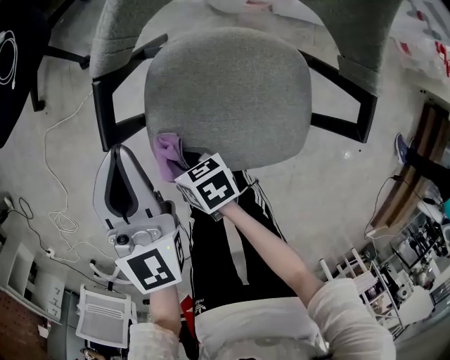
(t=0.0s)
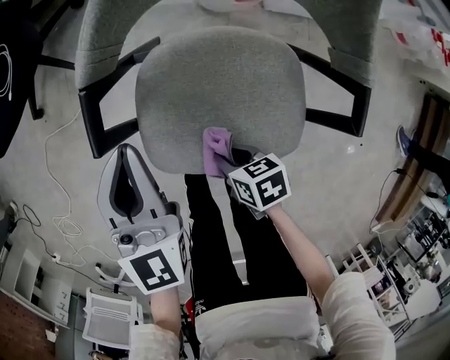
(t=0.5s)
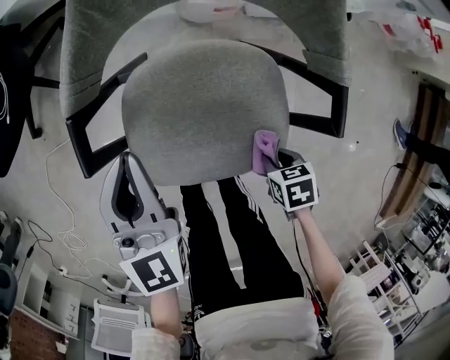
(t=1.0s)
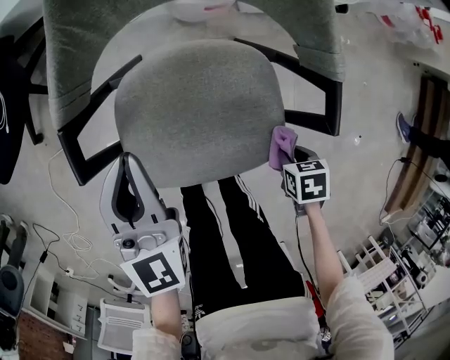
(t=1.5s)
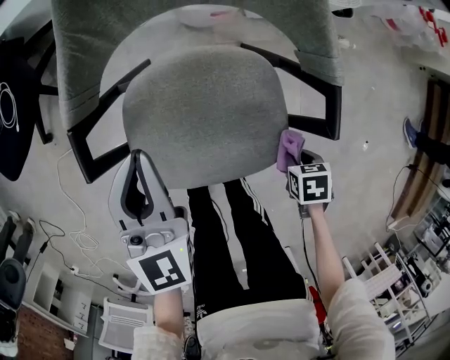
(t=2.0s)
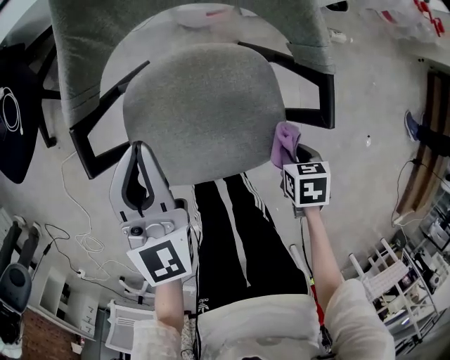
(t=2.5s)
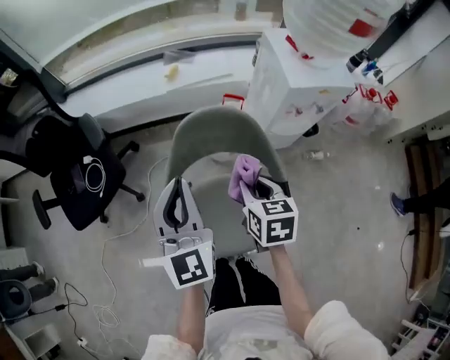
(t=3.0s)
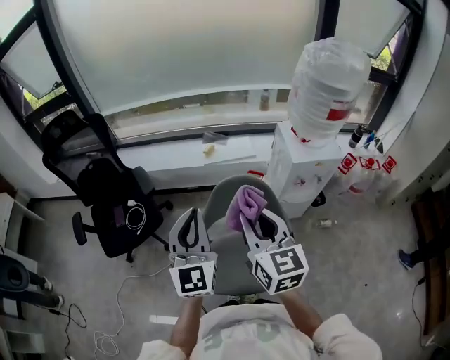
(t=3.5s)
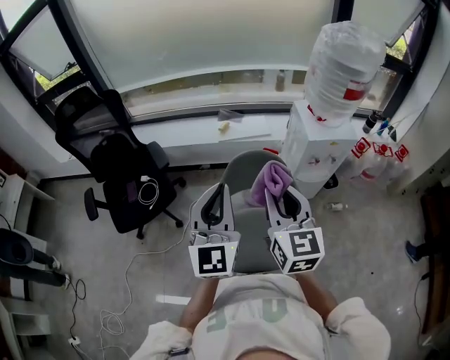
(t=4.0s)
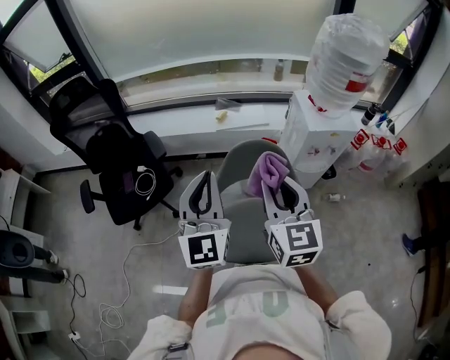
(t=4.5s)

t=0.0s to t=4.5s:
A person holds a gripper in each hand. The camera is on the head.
t=0.0s to t=2.0s: The right gripper shifts by about 40 cm, and angles its fingers downward, by roughly 40 degrees. The left gripper changes place by about 10 cm.
t=2.0s to t=4.5s: Both grippers travel together upward, roughly 50 cm. The right gripper angles its fingers upward, by some 80 degrees, while the left gripper points its fingers about 30 degrees further upward.

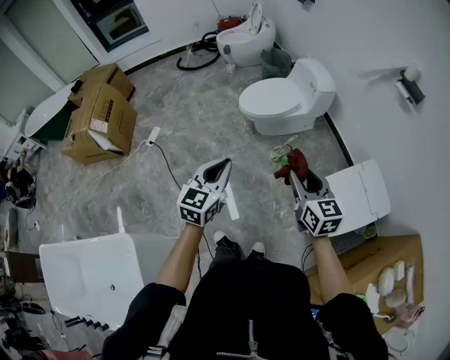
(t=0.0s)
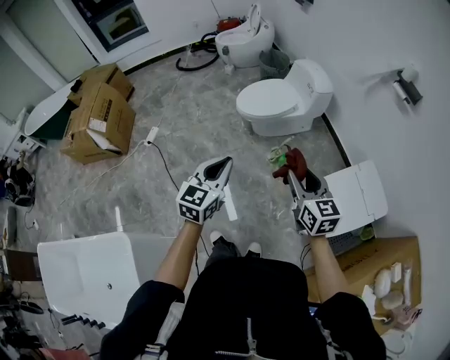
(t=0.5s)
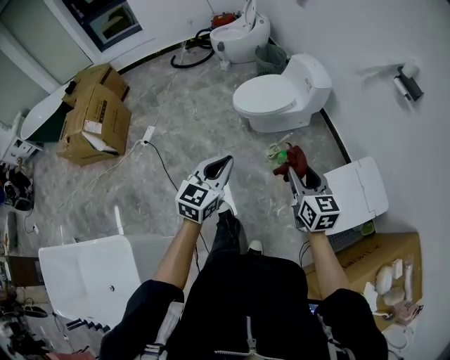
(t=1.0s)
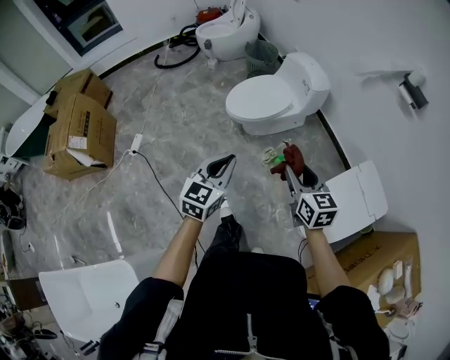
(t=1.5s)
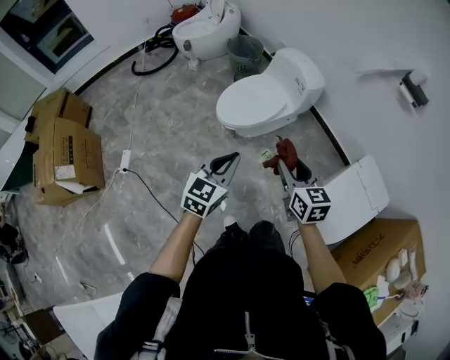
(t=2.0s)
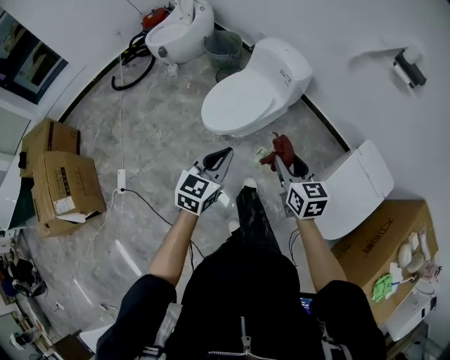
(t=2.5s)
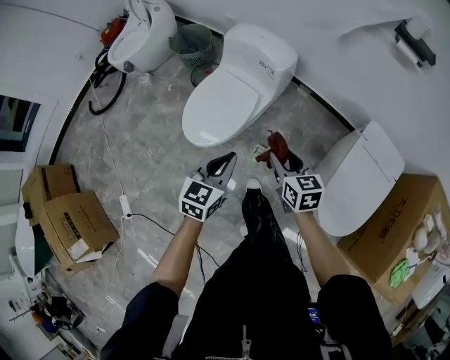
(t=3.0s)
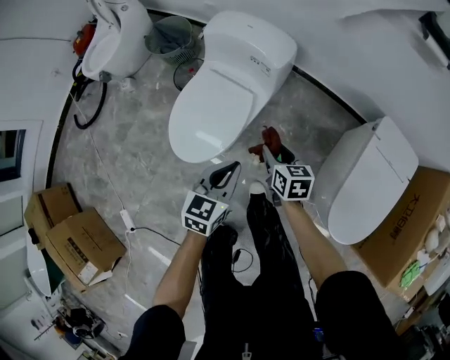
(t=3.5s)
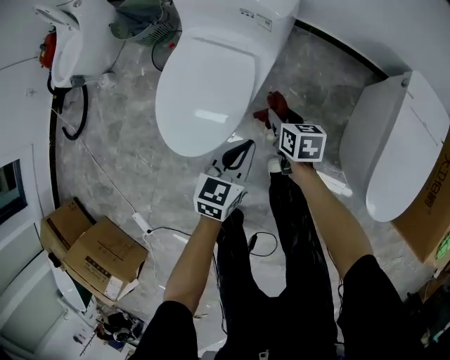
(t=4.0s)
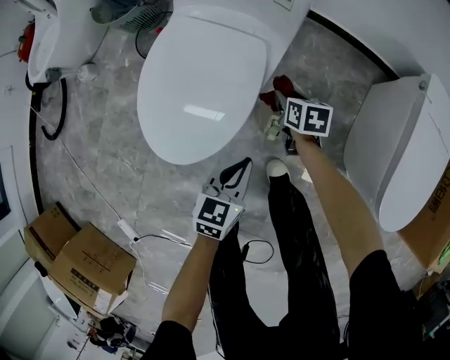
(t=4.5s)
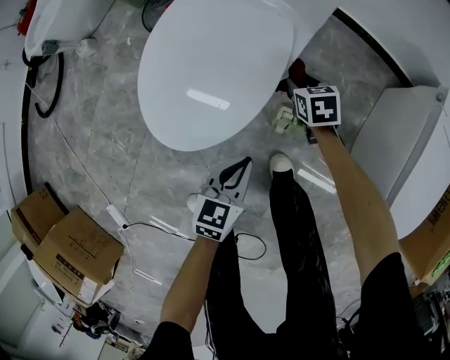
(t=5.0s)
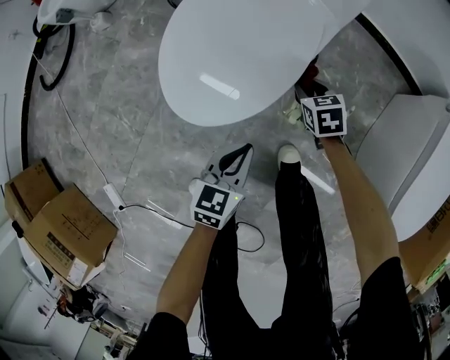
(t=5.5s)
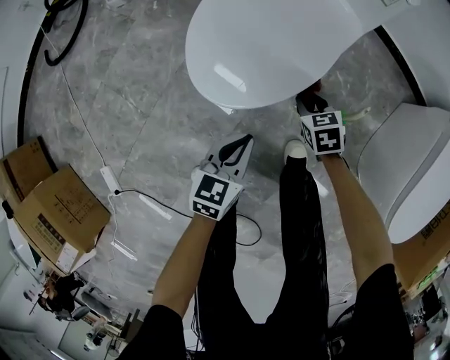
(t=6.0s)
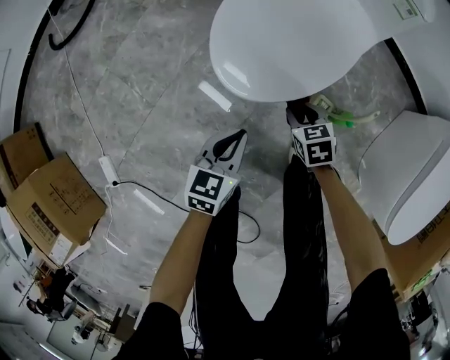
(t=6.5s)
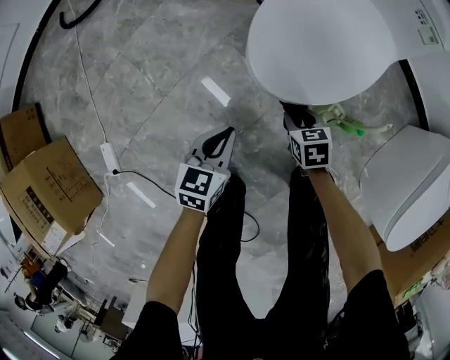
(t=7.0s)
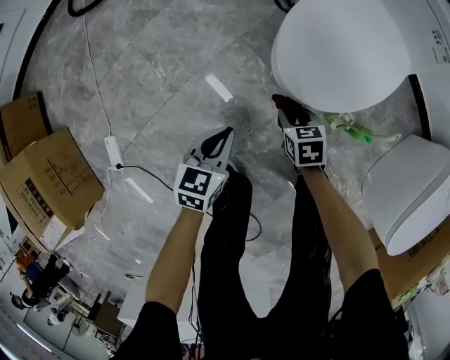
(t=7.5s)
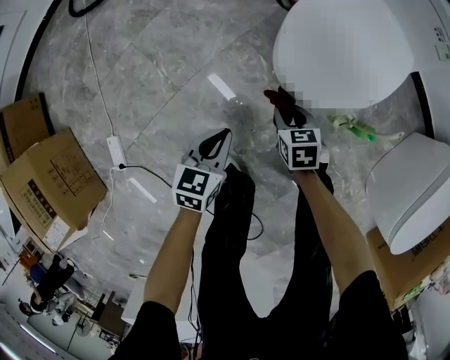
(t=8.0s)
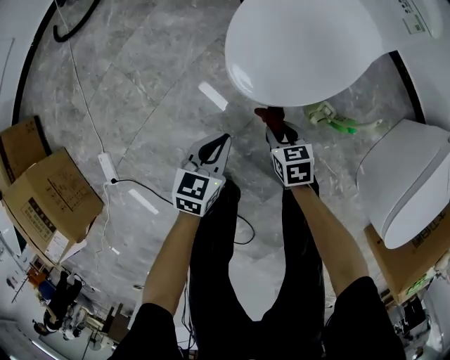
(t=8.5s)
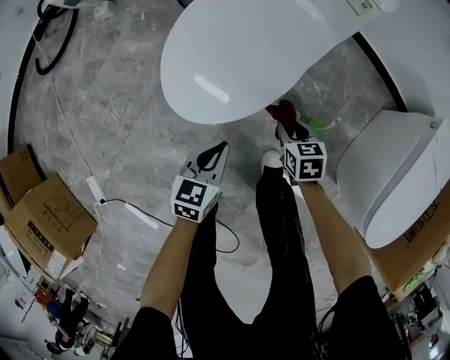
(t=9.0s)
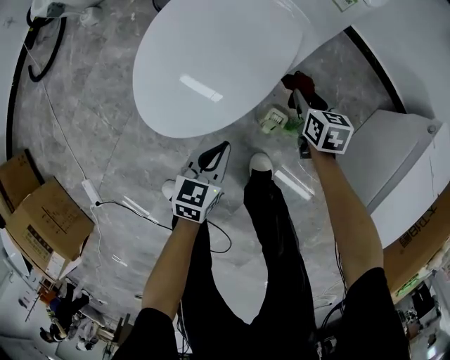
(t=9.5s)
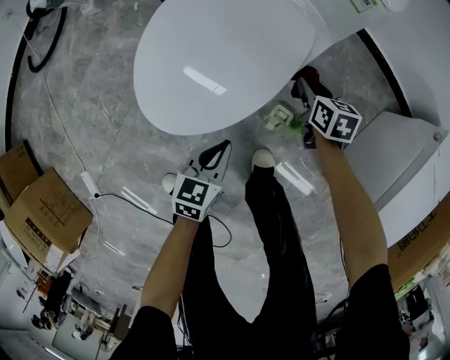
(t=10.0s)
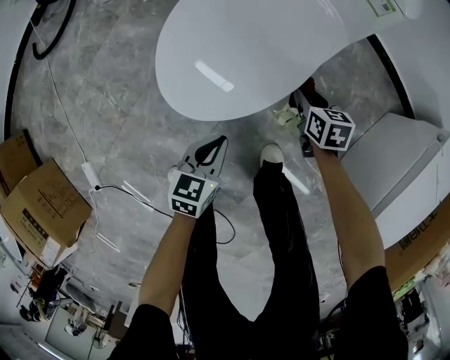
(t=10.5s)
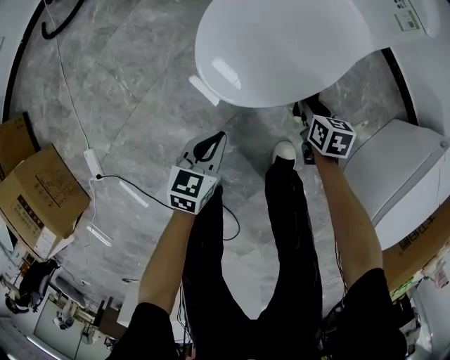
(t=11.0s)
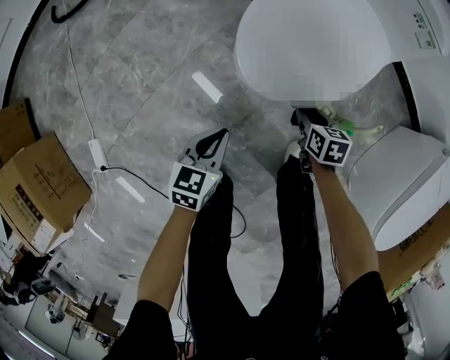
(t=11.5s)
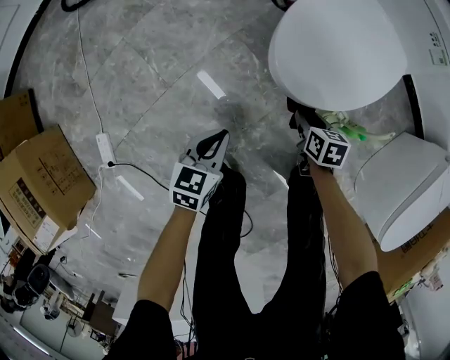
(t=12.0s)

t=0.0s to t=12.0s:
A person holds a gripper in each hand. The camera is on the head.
t=0.0s to t=2.0s: The left gripper goes roughly 25 cm forward, and turns by some 20 degrees. Meanwhile the right gripper shifts about 25 cm forward and to the left.
t=2.0s to t=4.0s: The grippers both shift downward by approximately 40 cm. The left gripper changes its angle by some 30 degrees, while the right gripper changes its angle by some 50 degrees.
t=4.0s to t=6.0s: Both grippers travel together downward, to the left and backward, some 25 cm. The right gripper changes its angle by some 40 degrees.
t=6.0s to t=8.0s: The two grippers go some 25 cm to the left.
t=8.0s to t=10.0s: The left gripper goes about 30 cm to the right; the right gripper shifts approximately 40 cm to the right and forward, and rotates roughly 30 degrees.
t=10.0s to t=12.0s: The left gripper shifts roughly 30 cm to the left, while the right gripper shifts approximately 35 cm to the left and backward.

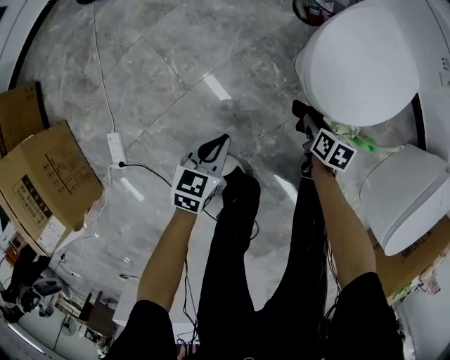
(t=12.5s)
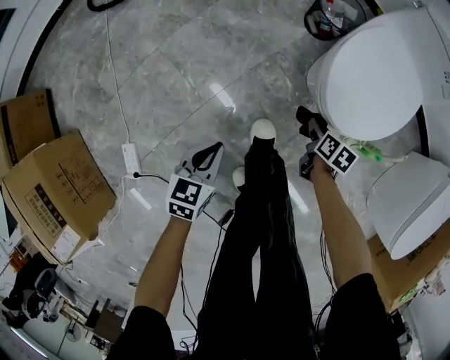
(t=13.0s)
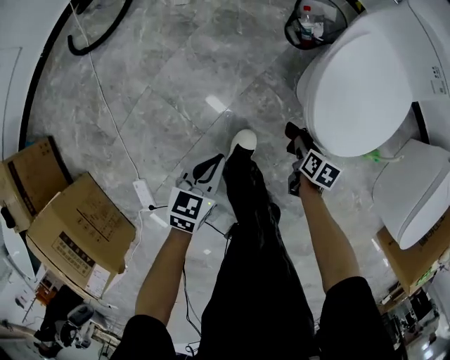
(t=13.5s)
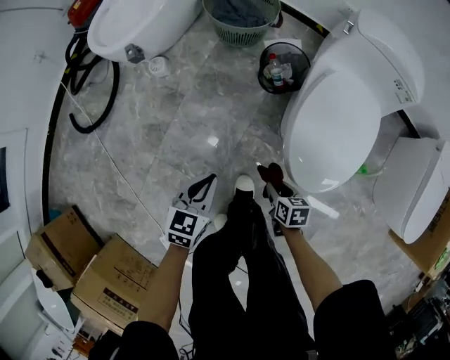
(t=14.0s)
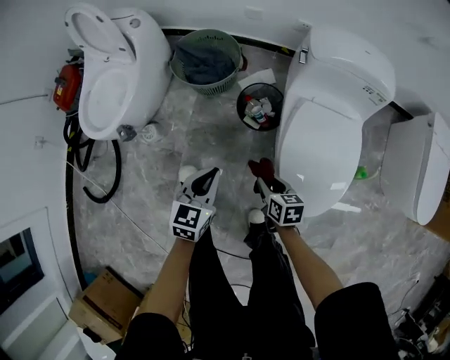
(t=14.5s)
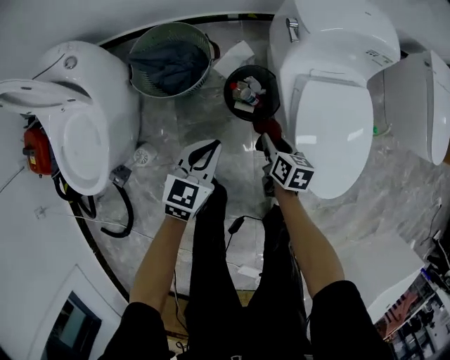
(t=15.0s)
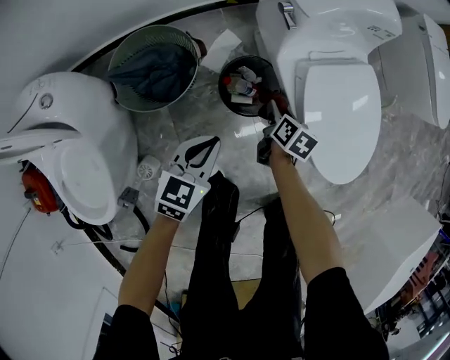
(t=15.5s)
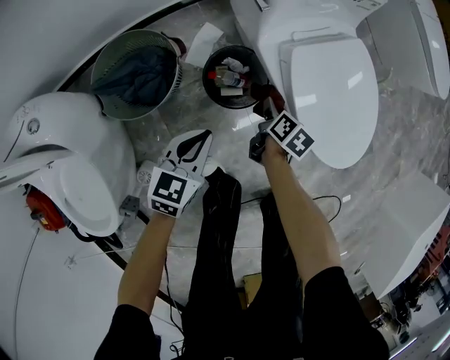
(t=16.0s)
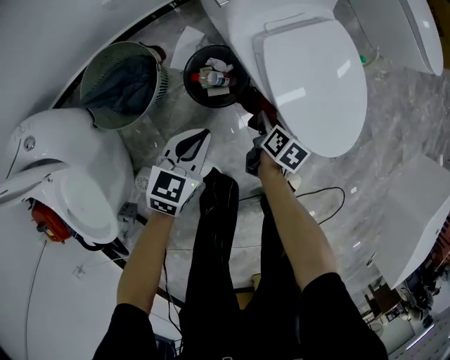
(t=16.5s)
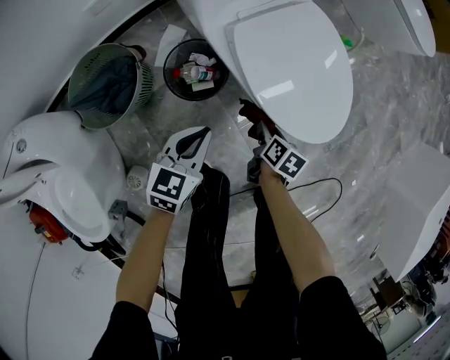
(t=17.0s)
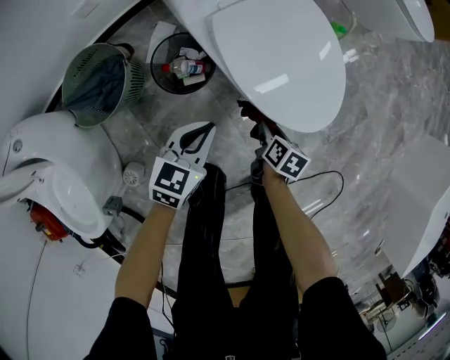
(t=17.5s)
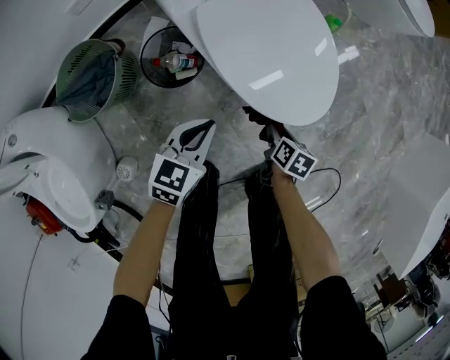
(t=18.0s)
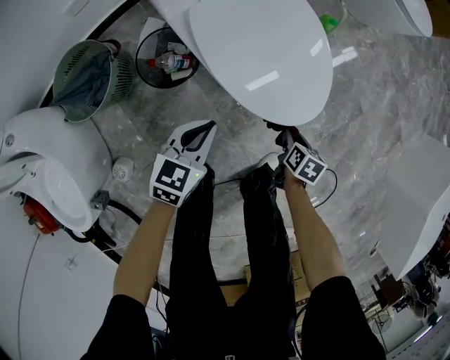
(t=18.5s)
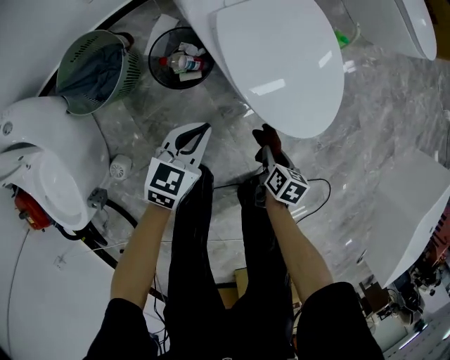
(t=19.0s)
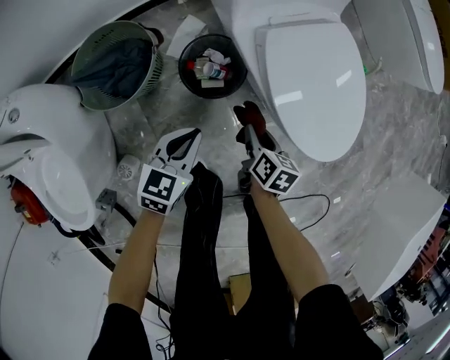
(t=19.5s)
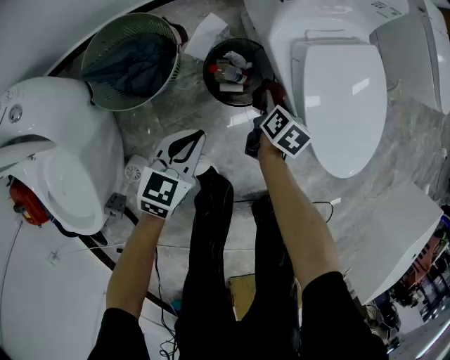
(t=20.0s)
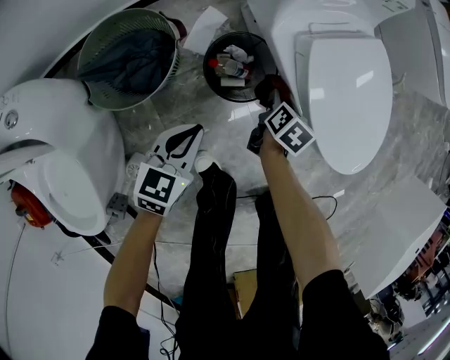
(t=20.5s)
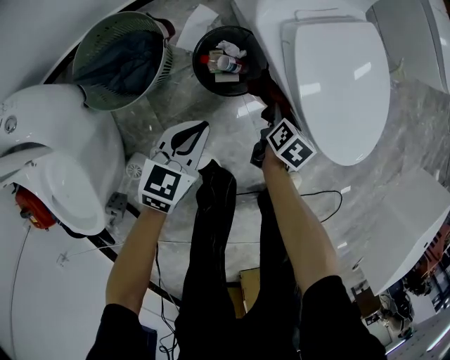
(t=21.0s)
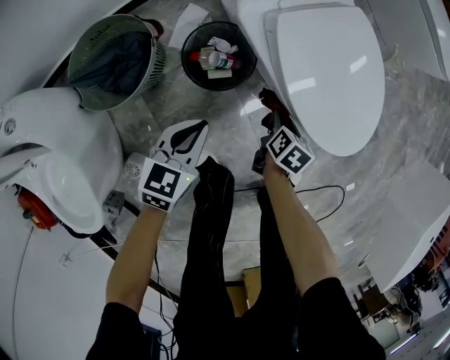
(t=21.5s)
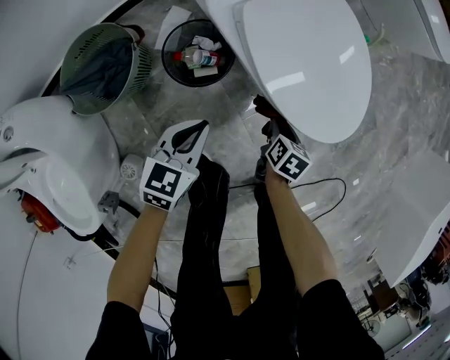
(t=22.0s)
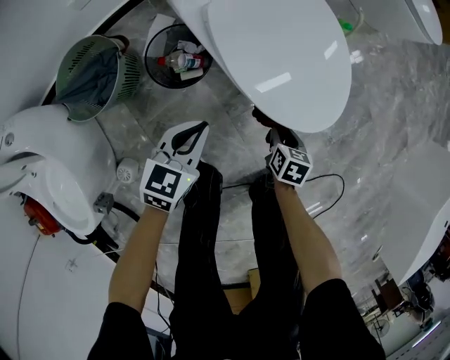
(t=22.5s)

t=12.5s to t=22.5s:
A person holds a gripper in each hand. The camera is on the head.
t=12.5s to t=14.5s: The left gripper goes about 50 cm forward, and changes its angle by approximately 40 degrees. Meanwhile the right gripper is displaced forward, to the left and upward by some 35 cm, and rotates some 30 degrees.
t=14.5s to t=16.5s: The right gripper shifts about 10 cm downward, and turns by approximately 70 degrees. Meanwhile the left gripper shifts by some 20 cm, and changes its angle by approximately 50 degrees.
t=16.5s to t=18.5s: The two grippers go some 25 cm to the right.
t=18.5s to t=20.5s: Both grippers travel together to the left, some 30 cm.
t=20.5s to t=22.5s: Both grippers move to the right, about 25 cm.
